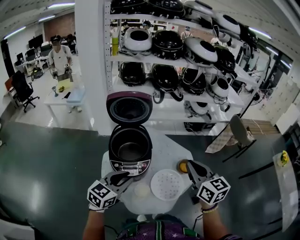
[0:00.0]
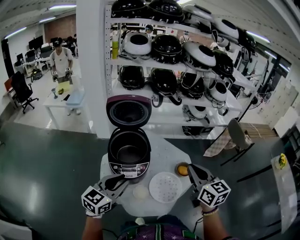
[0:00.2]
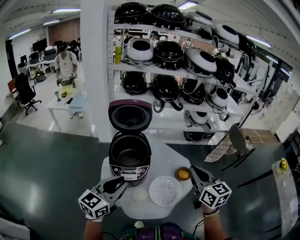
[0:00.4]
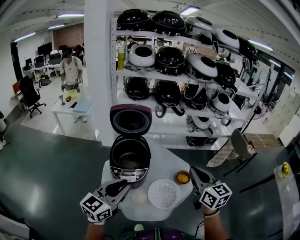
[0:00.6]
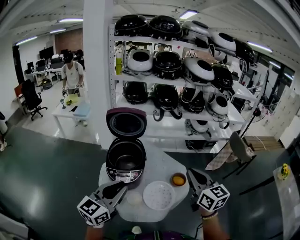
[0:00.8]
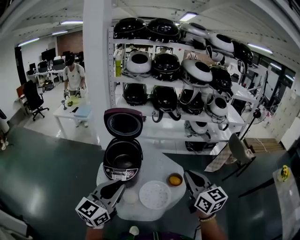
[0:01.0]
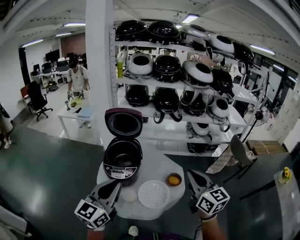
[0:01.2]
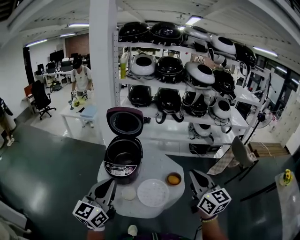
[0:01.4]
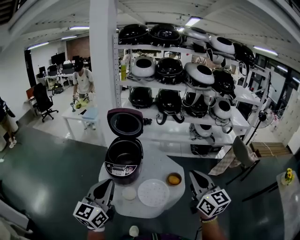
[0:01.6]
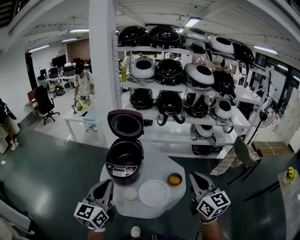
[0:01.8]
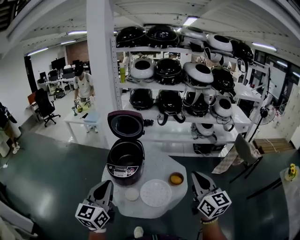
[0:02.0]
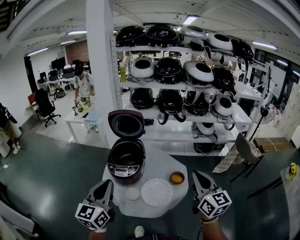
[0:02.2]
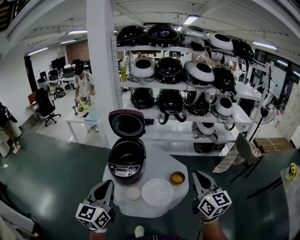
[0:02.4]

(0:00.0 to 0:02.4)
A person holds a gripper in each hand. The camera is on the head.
0:00.0 - 0:01.2: The right gripper moves to the right, upward and backward, approximately 15 cm, while the left gripper moves upward, backward and to the right, approximately 20 cm, and swivels approximately 30 degrees.
0:01.2 - 0:02.4: The right gripper ends up about 5 cm from where it was.

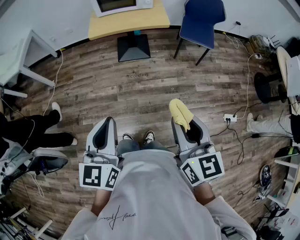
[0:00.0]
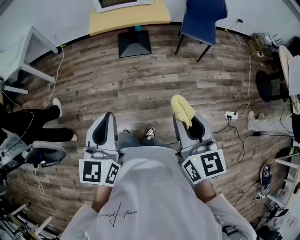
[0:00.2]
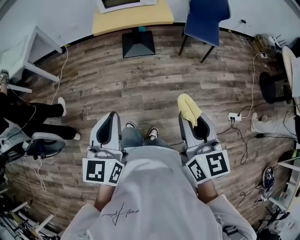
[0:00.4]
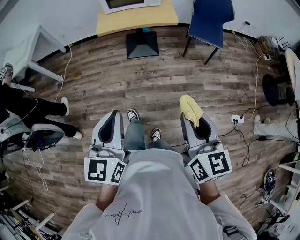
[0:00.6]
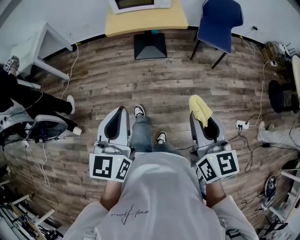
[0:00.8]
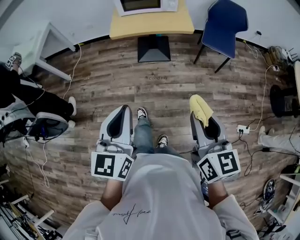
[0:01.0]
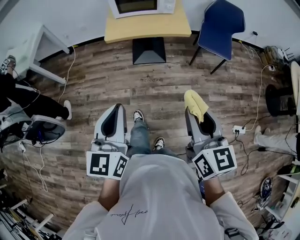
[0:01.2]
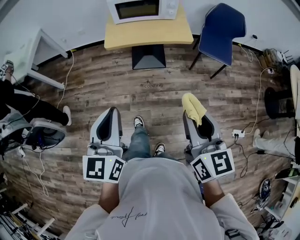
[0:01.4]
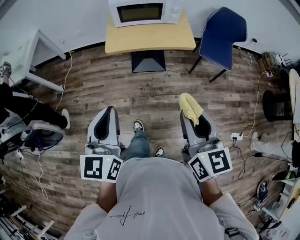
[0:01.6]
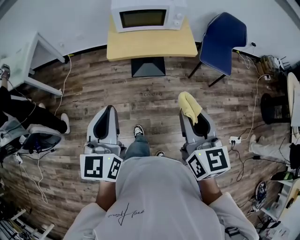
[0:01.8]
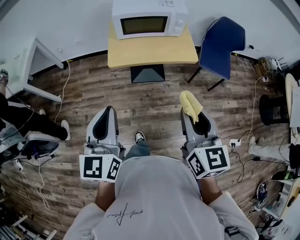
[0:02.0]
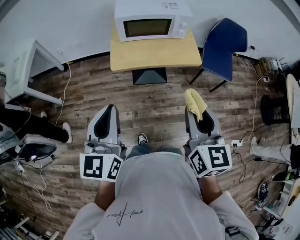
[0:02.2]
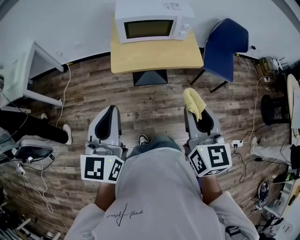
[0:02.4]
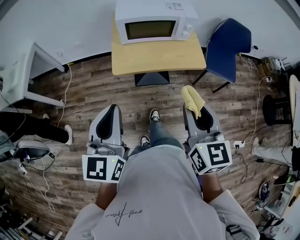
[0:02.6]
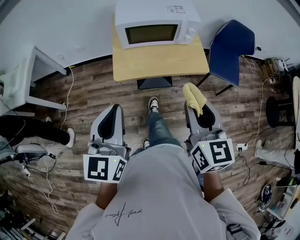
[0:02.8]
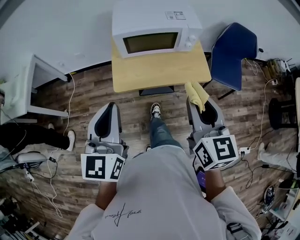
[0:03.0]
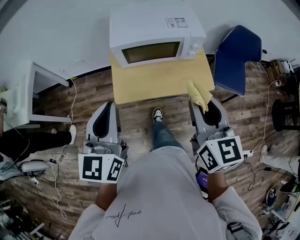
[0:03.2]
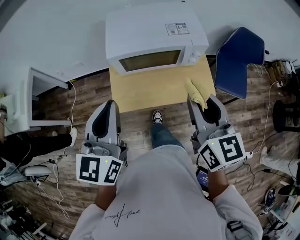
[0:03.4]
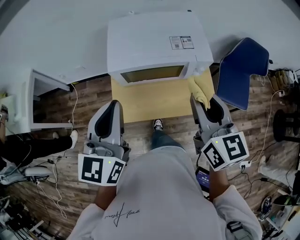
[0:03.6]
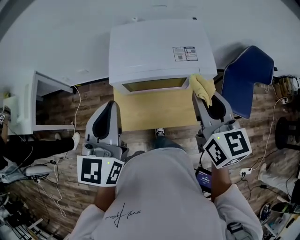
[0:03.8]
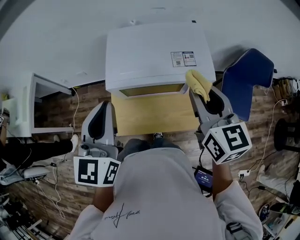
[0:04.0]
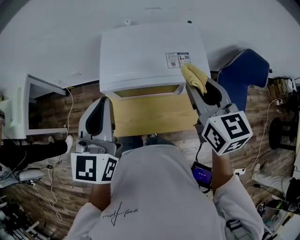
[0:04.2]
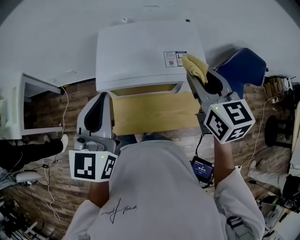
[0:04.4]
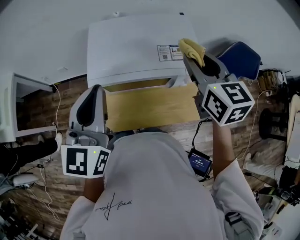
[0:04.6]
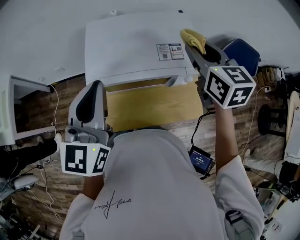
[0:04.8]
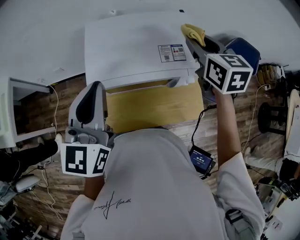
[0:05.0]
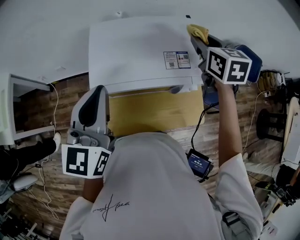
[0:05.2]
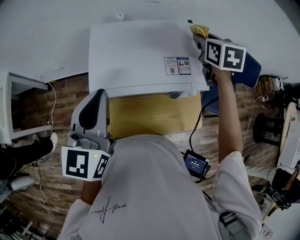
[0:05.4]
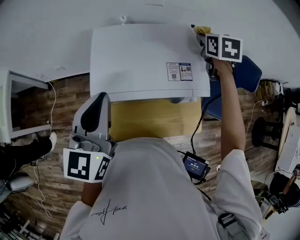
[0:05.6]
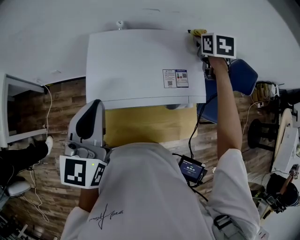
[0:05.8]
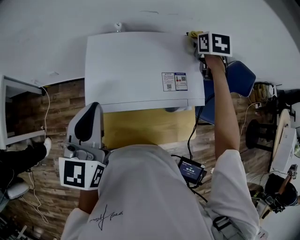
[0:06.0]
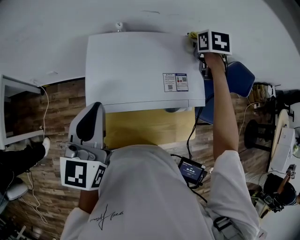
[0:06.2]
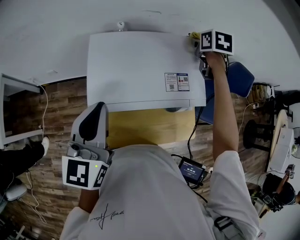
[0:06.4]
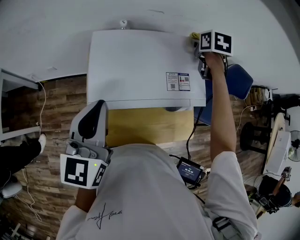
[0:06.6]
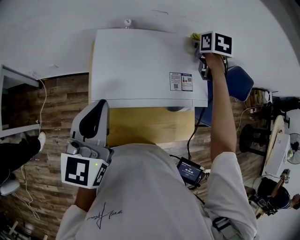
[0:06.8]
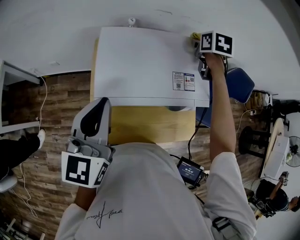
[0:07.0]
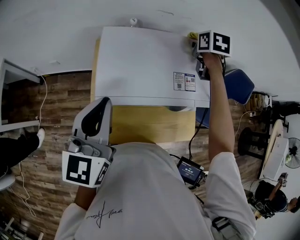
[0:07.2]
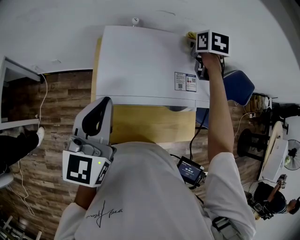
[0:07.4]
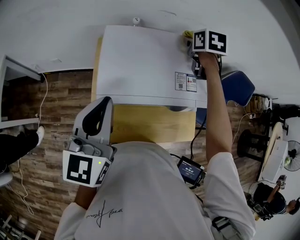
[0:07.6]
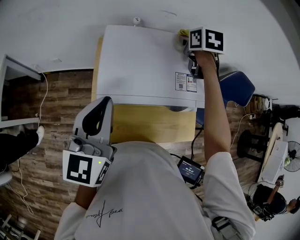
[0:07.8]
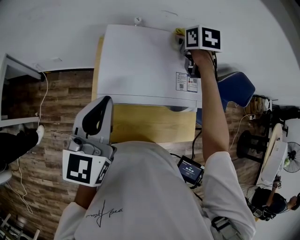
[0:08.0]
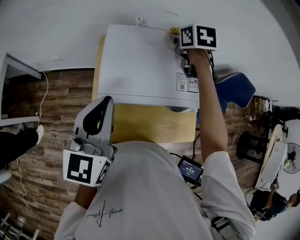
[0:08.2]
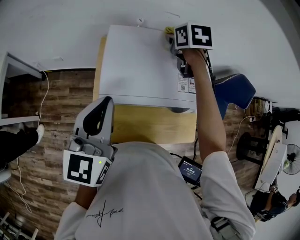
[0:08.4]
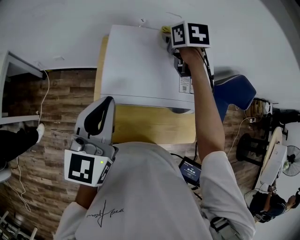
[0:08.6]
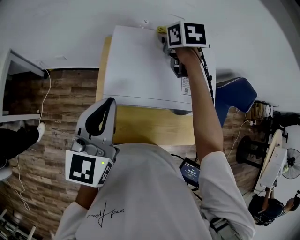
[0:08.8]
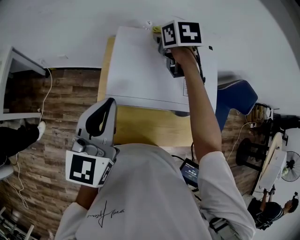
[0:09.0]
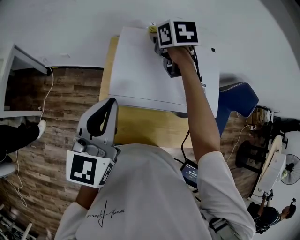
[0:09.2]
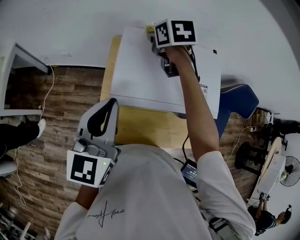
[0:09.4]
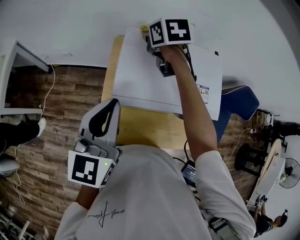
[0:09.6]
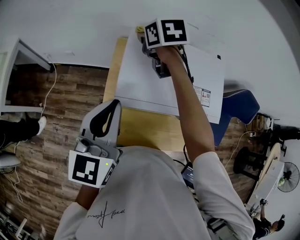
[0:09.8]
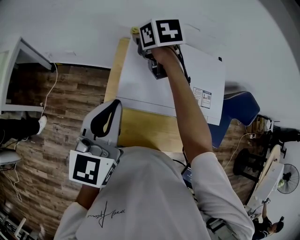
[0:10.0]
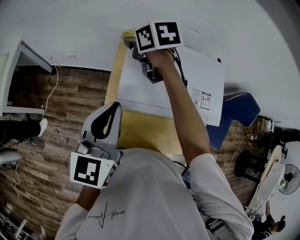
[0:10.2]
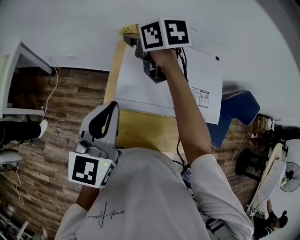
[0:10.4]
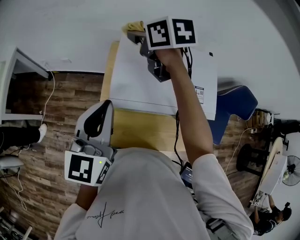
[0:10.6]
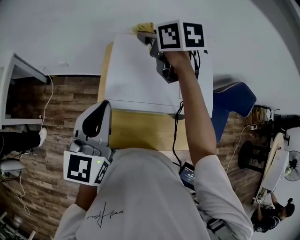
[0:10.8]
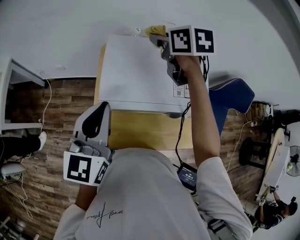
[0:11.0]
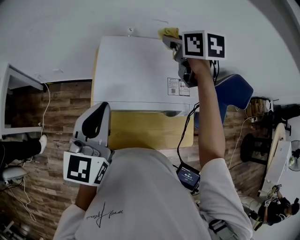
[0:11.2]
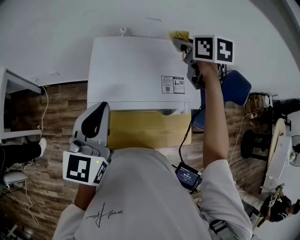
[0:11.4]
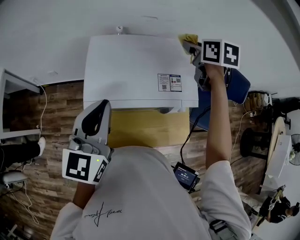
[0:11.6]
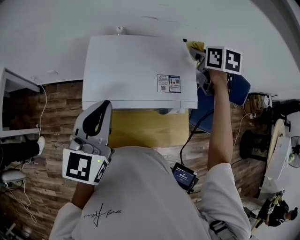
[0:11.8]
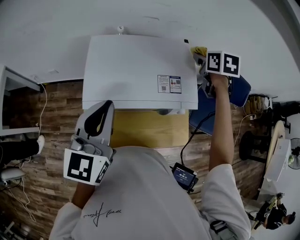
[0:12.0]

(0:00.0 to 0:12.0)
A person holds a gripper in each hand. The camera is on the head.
0:00.0 - 0:01.6: Both grippers move forward, roughly 25 cm.
0:01.6 - 0:03.0: Both grippers travel together forward, about 30 cm.
0:03.0 - 0:04.4: Both grippers move forward, approximately 35 cm.
0:04.4 - 0:06.0: The left gripper travels forward by approximately 10 cm. Meanwhile the right gripper goes approximately 30 cm forward, and turns by roughly 30 degrees.
0:06.0 - 0:07.6: The right gripper heads to the left, covering about 10 cm.
0:07.6 - 0:09.0: The right gripper moves to the left, approximately 15 cm.
0:09.0 - 0:10.4: The right gripper shifts about 15 cm to the left, and changes its angle by about 20 degrees.
0:10.4 - 0:12.0: The right gripper ends up about 40 cm from where it was, and changes its angle by some 40 degrees. The left gripper shifts by approximately 10 cm.

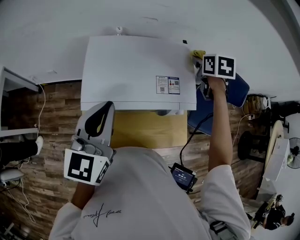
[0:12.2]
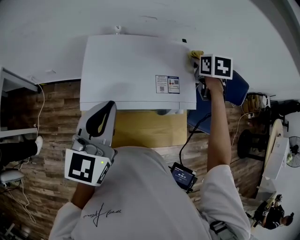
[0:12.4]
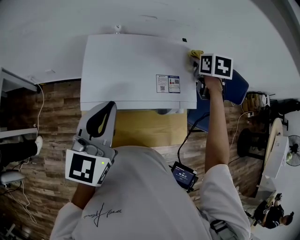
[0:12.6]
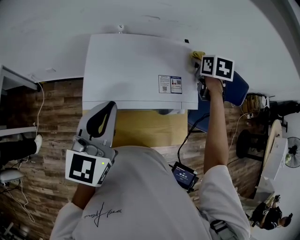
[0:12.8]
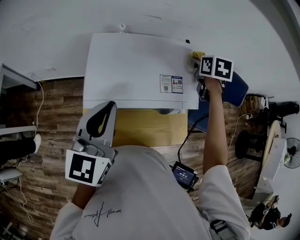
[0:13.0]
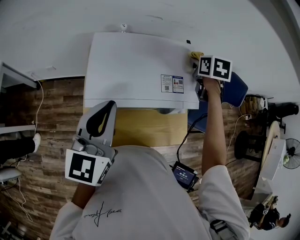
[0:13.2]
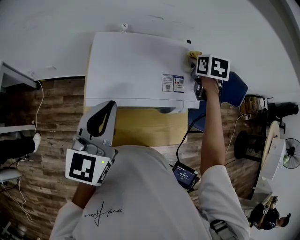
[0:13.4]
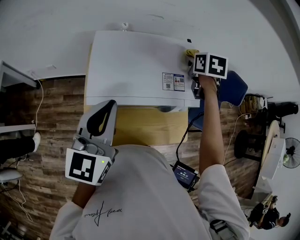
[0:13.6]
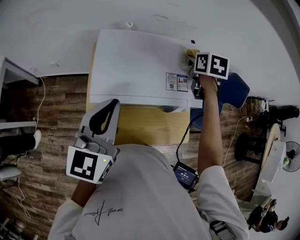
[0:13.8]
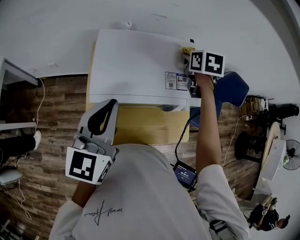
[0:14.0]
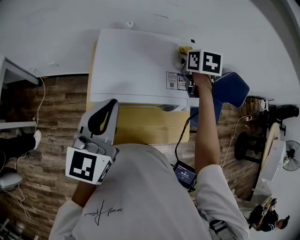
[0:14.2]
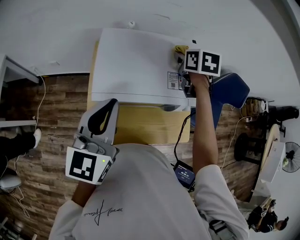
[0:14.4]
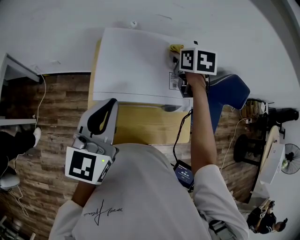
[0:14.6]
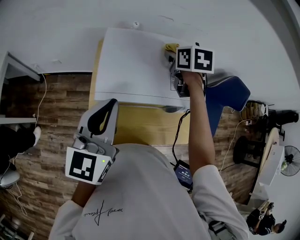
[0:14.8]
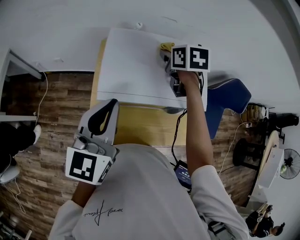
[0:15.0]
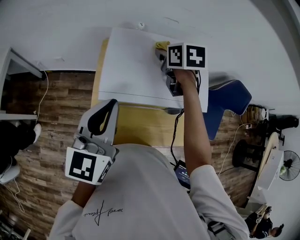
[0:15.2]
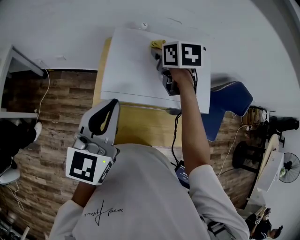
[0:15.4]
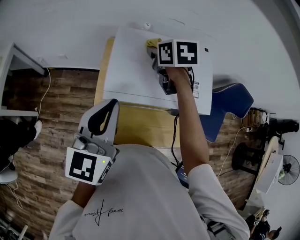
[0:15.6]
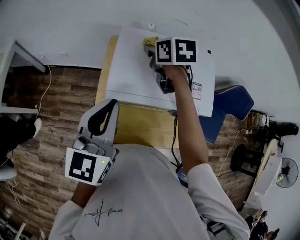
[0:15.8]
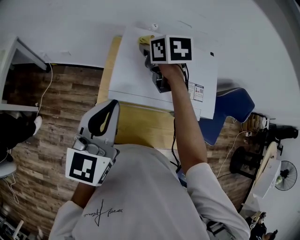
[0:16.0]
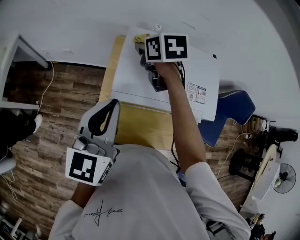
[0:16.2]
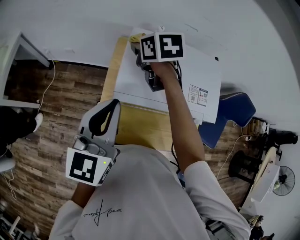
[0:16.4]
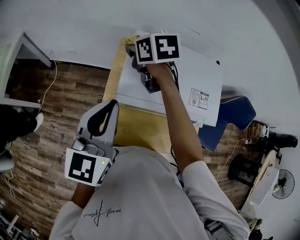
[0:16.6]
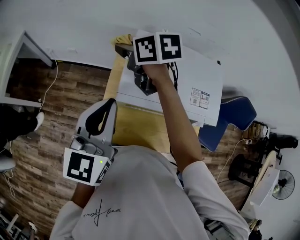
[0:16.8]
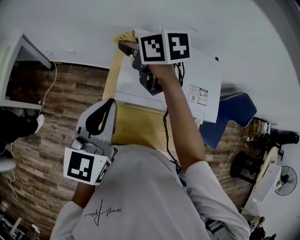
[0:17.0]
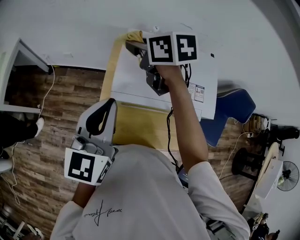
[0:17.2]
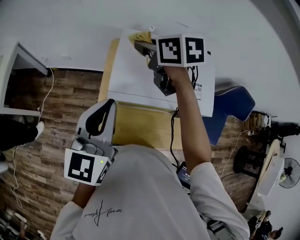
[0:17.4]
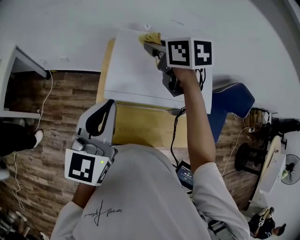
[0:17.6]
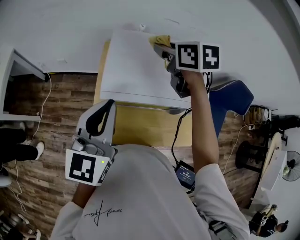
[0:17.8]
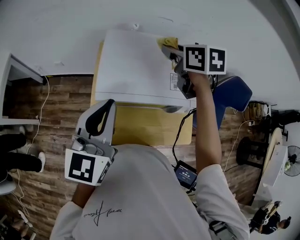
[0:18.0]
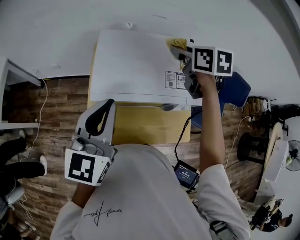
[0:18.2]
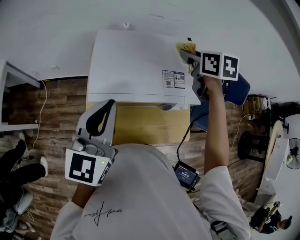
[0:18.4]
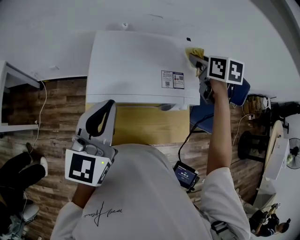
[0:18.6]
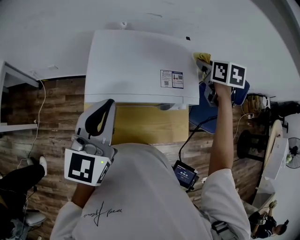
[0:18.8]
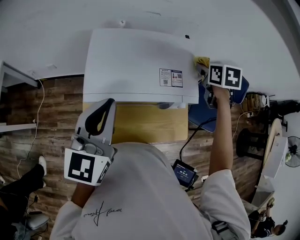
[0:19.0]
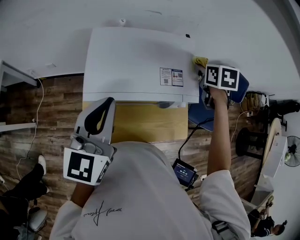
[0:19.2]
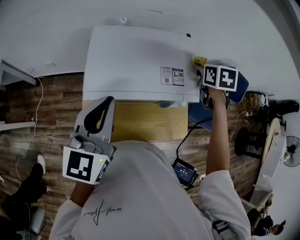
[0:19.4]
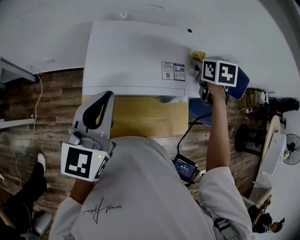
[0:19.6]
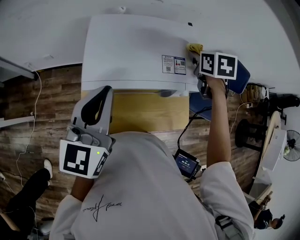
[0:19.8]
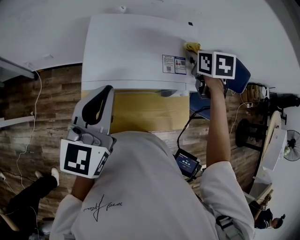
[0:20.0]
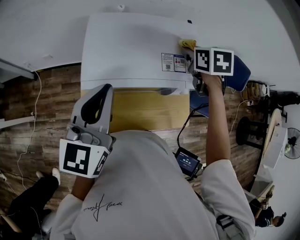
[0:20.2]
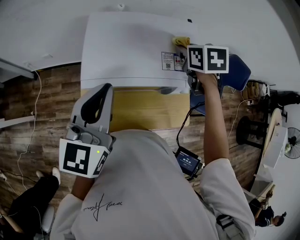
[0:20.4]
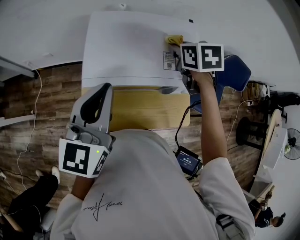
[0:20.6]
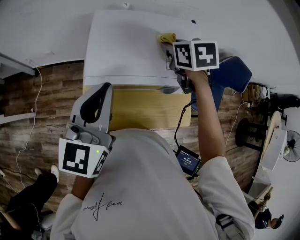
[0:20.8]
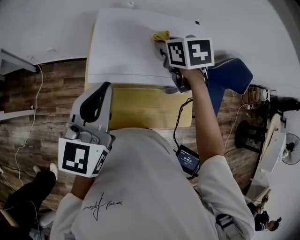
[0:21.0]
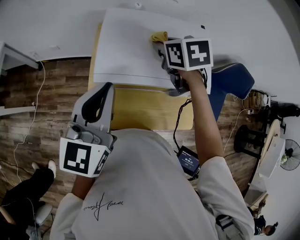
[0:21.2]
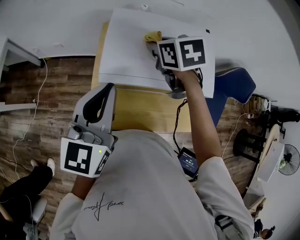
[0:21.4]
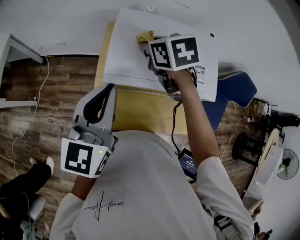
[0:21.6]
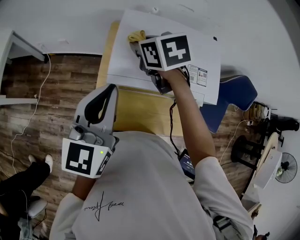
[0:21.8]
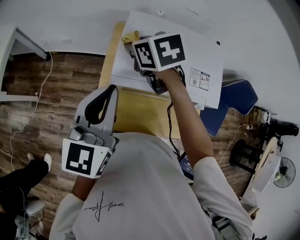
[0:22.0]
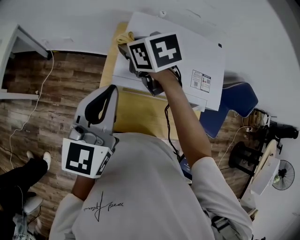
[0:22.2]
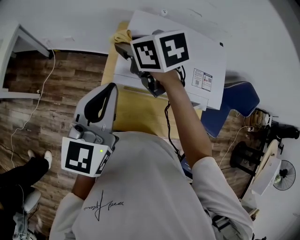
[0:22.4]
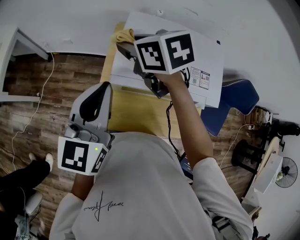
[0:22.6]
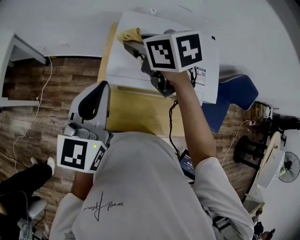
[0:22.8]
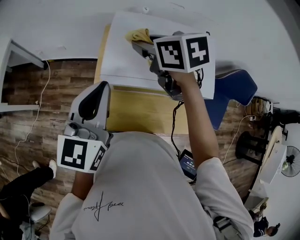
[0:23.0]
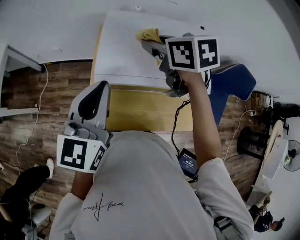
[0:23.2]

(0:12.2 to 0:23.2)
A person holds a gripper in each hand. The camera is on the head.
0:12.2 - 0:13.8: The right gripper is displaced to the left by approximately 5 cm.
0:13.8 - 0:15.4: The right gripper heads to the left, covering approximately 20 cm, and swivels roughly 20 degrees.
0:15.4 - 0:17.0: The right gripper is displaced to the left by approximately 20 cm, and rotates roughly 30 degrees. Meanwhile the left gripper shifts about 5 cm to the left.
0:17.0 - 0:18.4: The left gripper shifts about 10 cm to the right. The right gripper travels to the right by some 35 cm, and turns by about 30 degrees.
0:18.4 - 0:20.0: The right gripper heads downward, covering roughly 5 cm.
0:20.0 - 0:21.6: The right gripper is displaced to the left by roughly 25 cm, and turns by approximately 30 degrees. The left gripper travels to the left by some 5 cm.
0:21.6 - 0:23.2: The right gripper reaches approximately 10 cm to the left, then returns.
